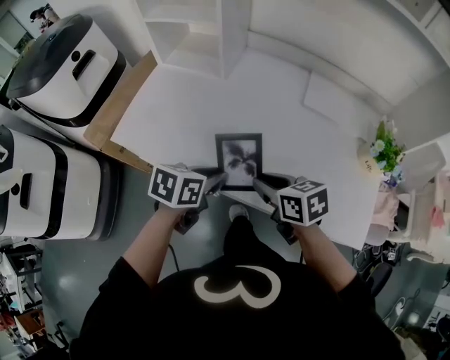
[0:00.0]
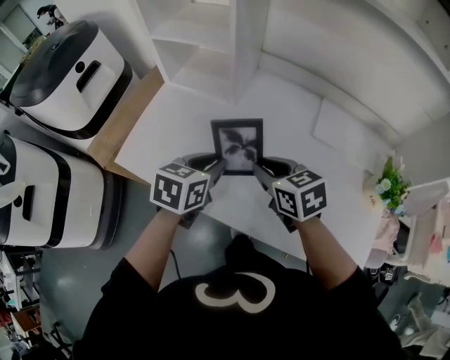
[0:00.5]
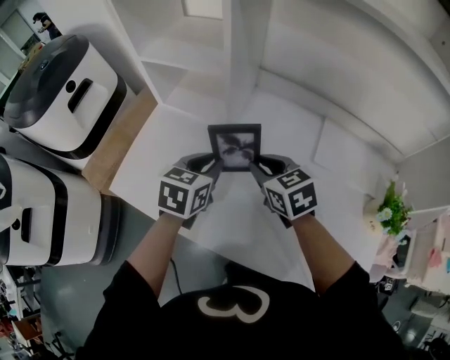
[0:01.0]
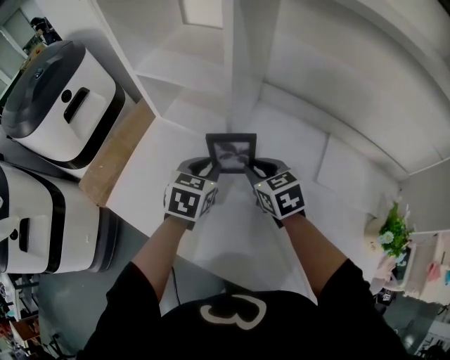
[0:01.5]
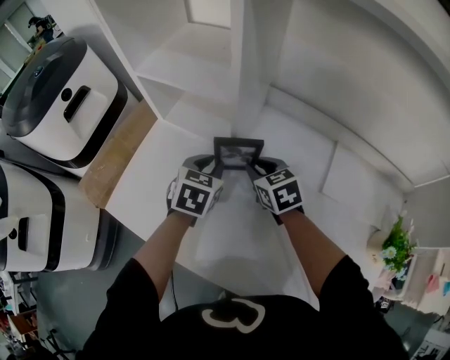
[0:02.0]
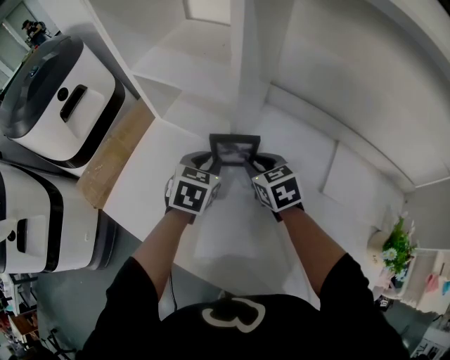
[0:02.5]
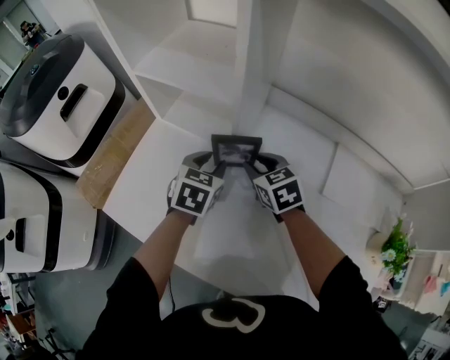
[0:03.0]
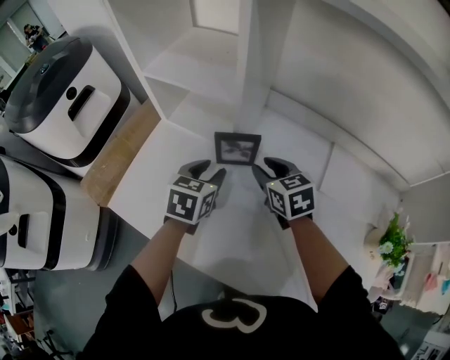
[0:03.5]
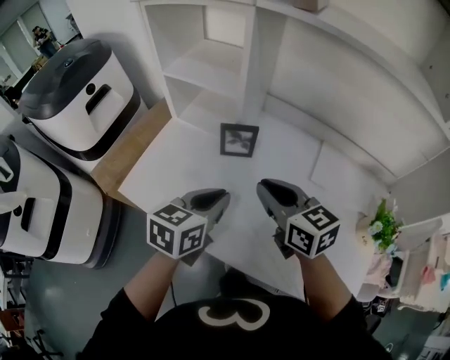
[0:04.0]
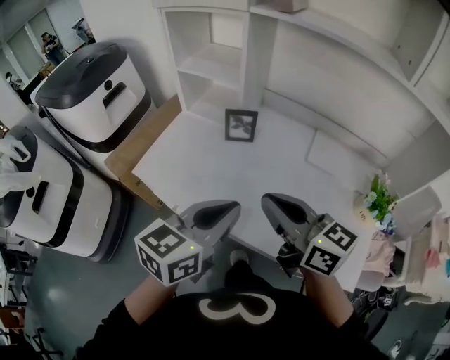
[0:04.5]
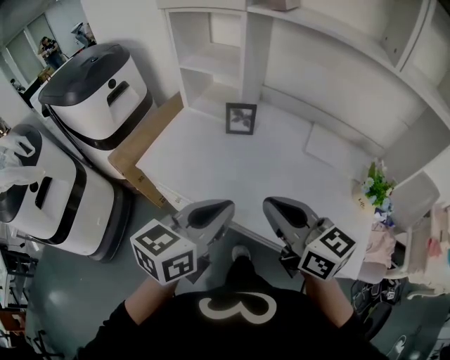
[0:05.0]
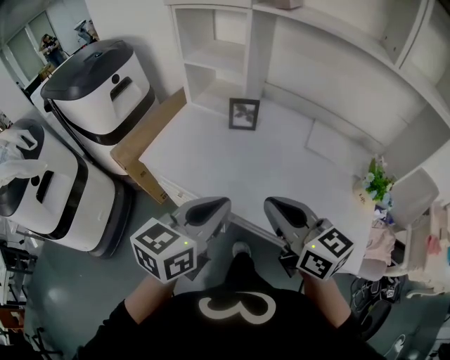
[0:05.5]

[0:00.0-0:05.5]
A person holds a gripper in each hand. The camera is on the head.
0:00.0 to 0:02.0: The two grippers go some 35 cm forward. The right gripper turns by about 20 degrees. The left gripper turns by approximately 30 degrees.
0:02.0 to 0:03.5: There are only small adjustments of the grippers.
0:03.5 to 0:05.5: The two grippers go approximately 40 cm backward and upward. The left gripper rotates approximately 30 degrees, and closes its fingers; the right gripper changes its angle by about 30 degrees, and closes.

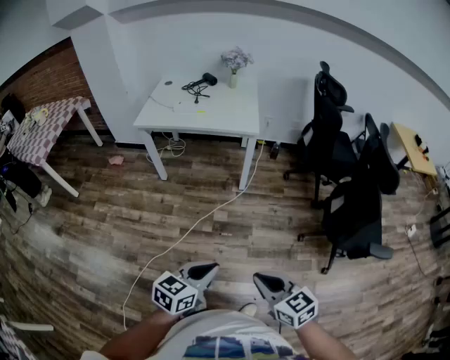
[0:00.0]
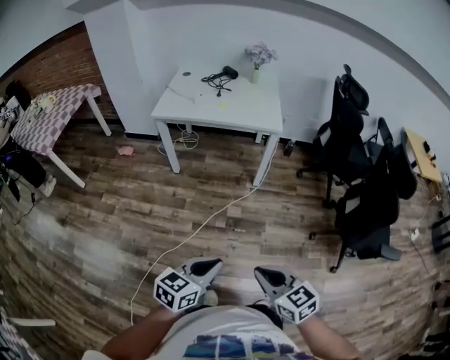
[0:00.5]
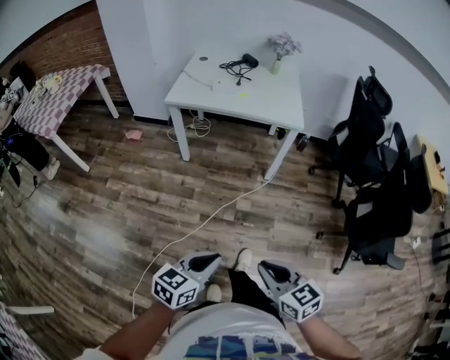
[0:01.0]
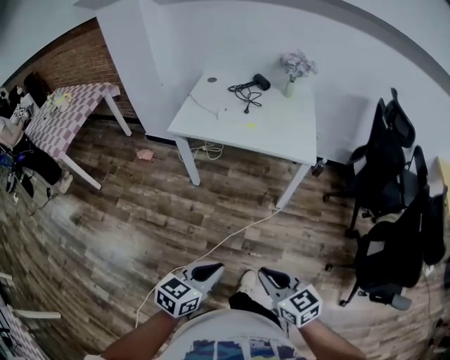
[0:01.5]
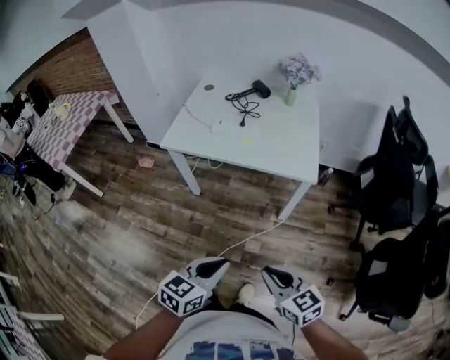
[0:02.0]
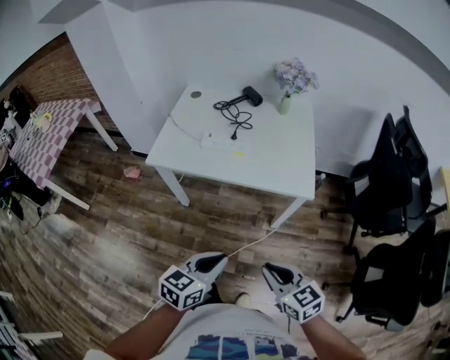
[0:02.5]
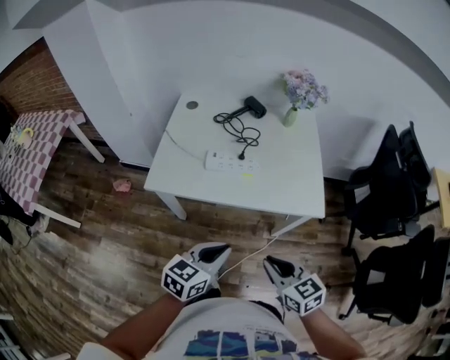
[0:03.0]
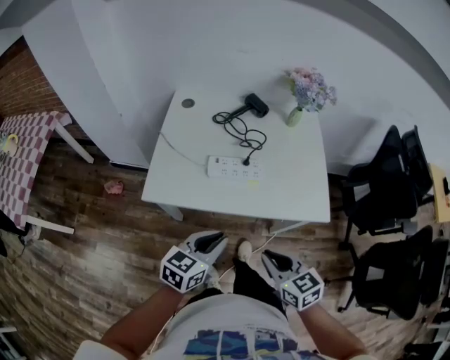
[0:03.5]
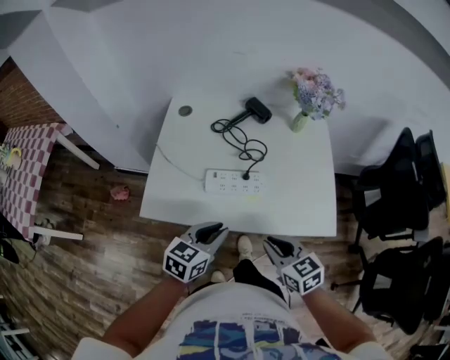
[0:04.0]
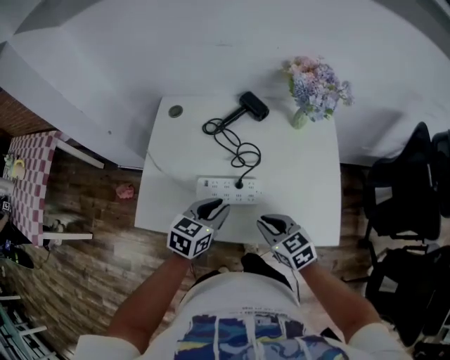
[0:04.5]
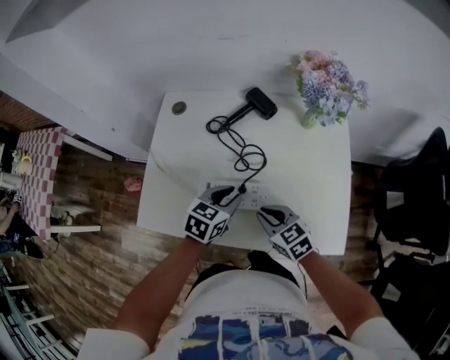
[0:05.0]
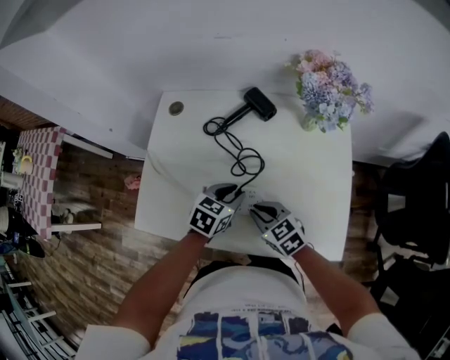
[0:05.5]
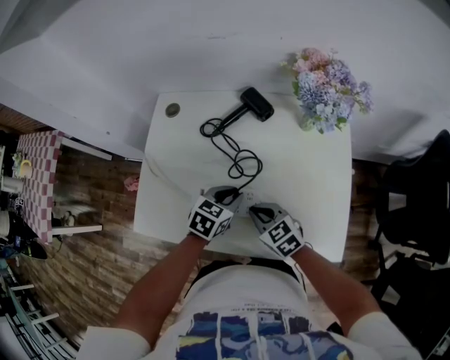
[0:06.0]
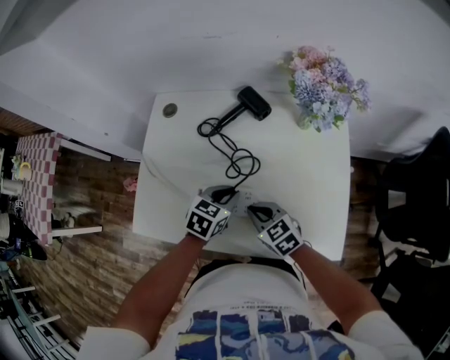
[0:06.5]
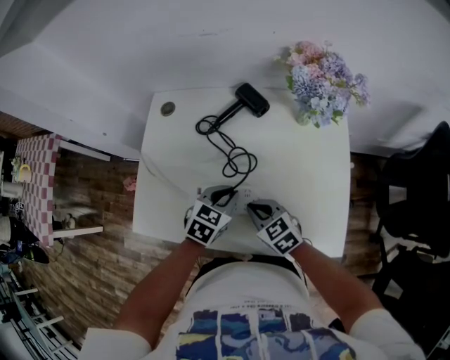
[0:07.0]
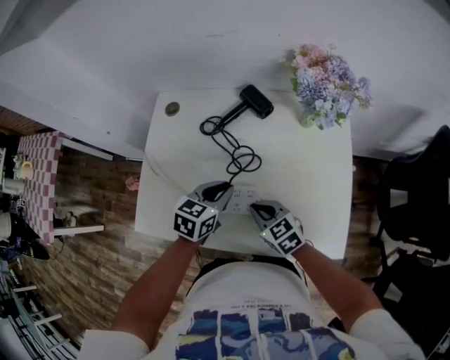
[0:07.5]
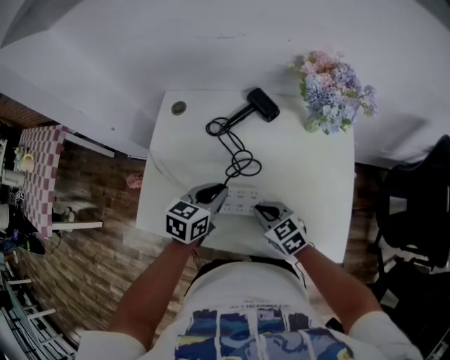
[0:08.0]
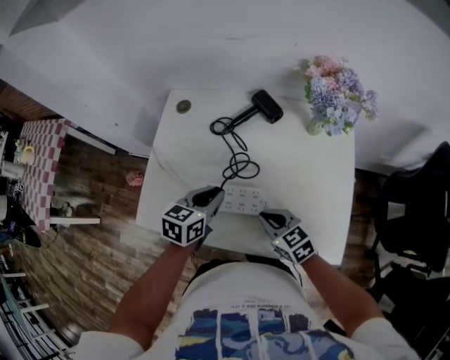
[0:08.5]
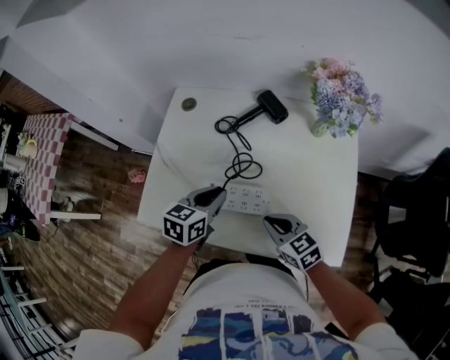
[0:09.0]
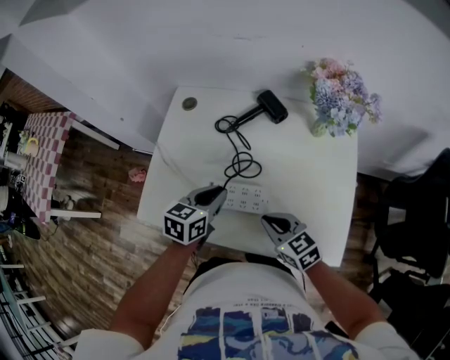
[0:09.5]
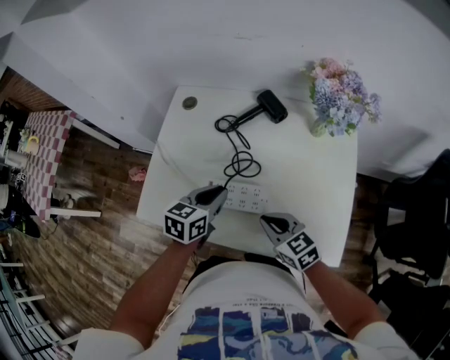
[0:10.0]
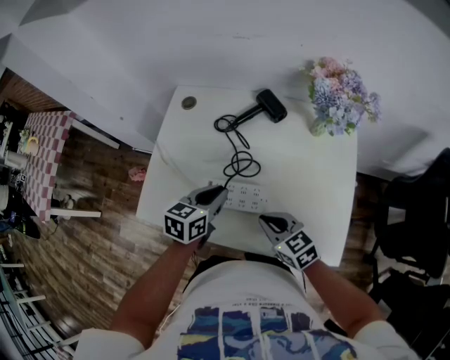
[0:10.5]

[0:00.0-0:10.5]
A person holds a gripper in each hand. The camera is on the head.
0:00.0 to 0:02.0: Both grippers move forward, approximately 35 cm.
0:02.0 to 0:04.0: Both grippers are carried forward, approximately 50 cm.
0:04.0 to 0:06.5: The right gripper shifts about 25 cm forward and downward. The left gripper is displaced forward, downward and to the right by approximately 25 cm.
0:06.5 to 0:08.5: The left gripper shifts some 10 cm to the left and upward.
0:08.5 to 0:10.5: The grippers move only a little.

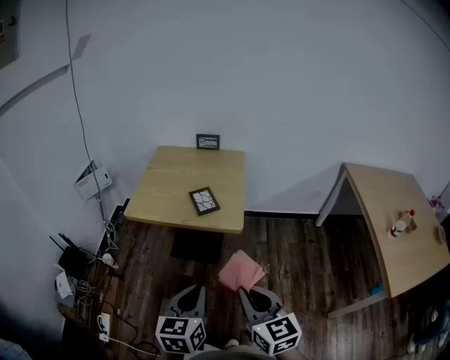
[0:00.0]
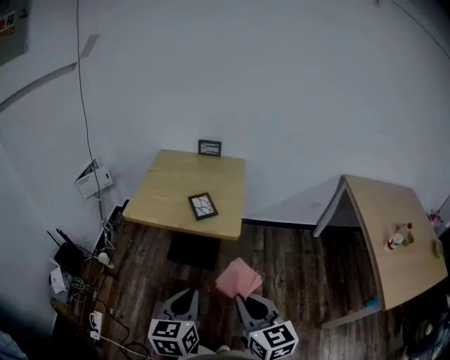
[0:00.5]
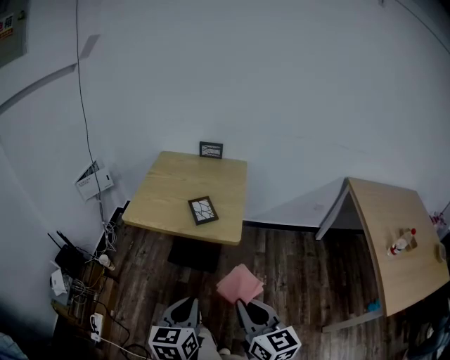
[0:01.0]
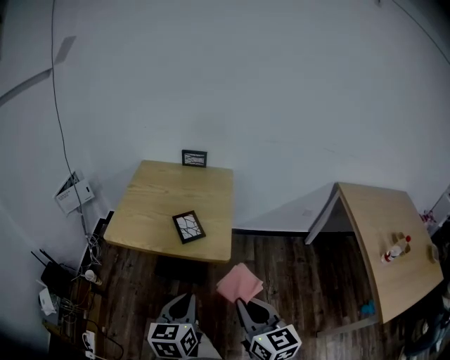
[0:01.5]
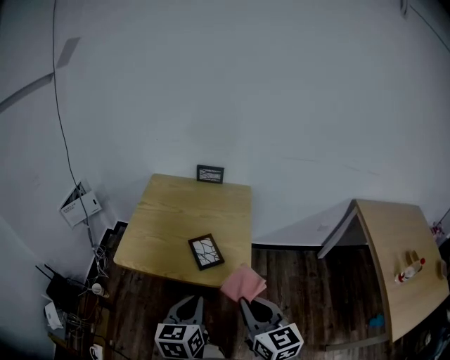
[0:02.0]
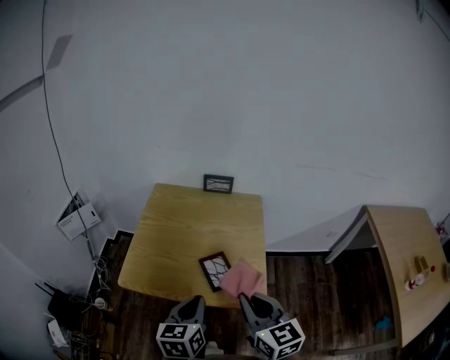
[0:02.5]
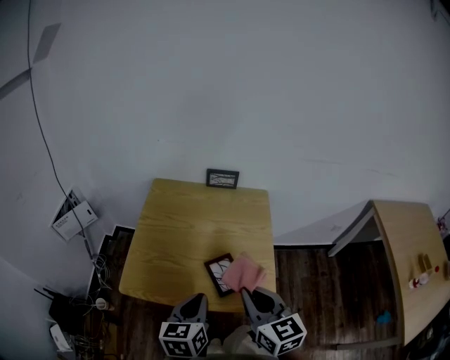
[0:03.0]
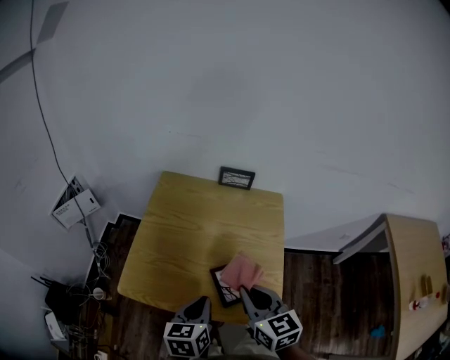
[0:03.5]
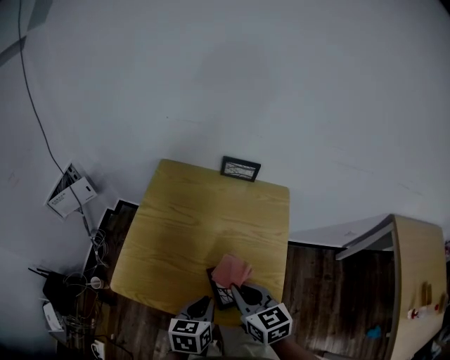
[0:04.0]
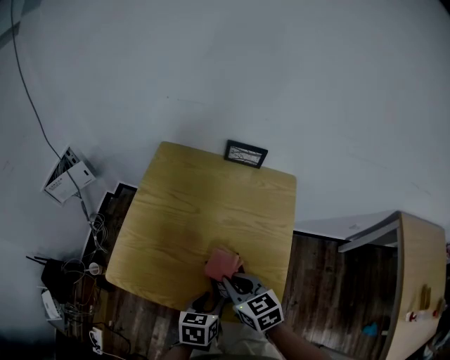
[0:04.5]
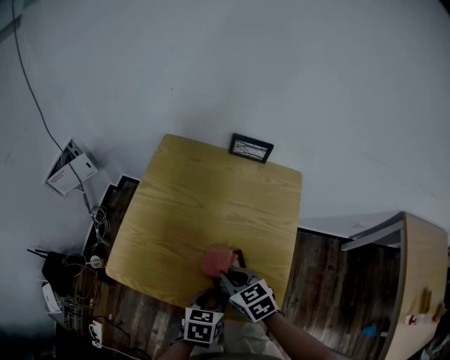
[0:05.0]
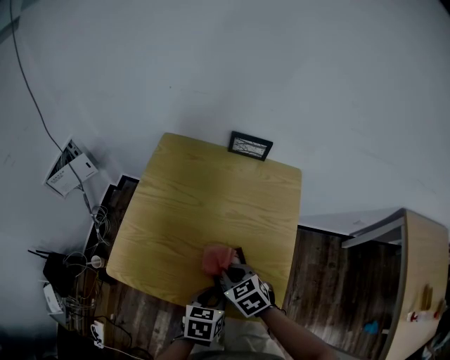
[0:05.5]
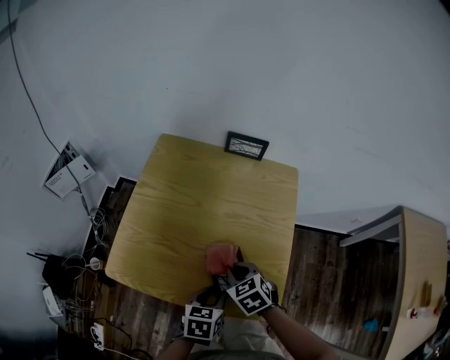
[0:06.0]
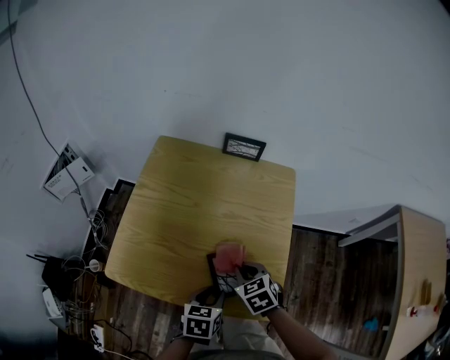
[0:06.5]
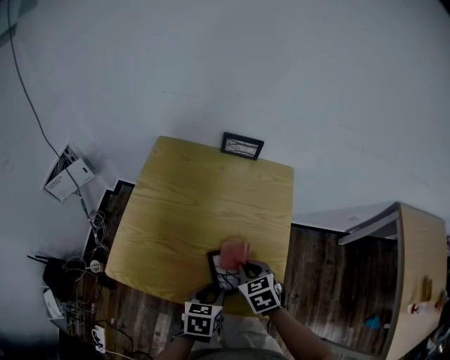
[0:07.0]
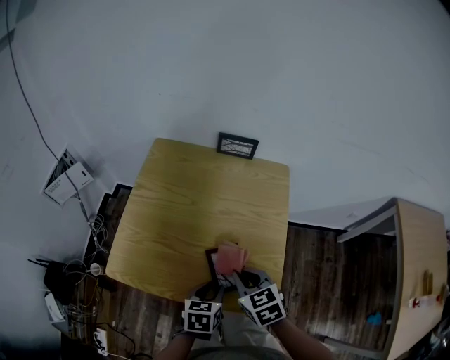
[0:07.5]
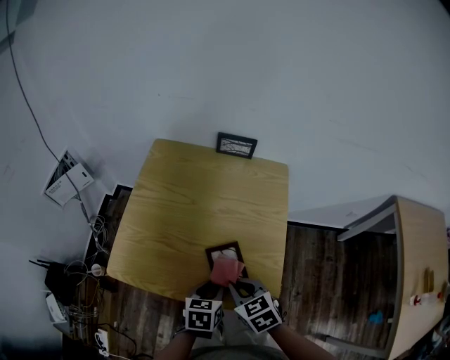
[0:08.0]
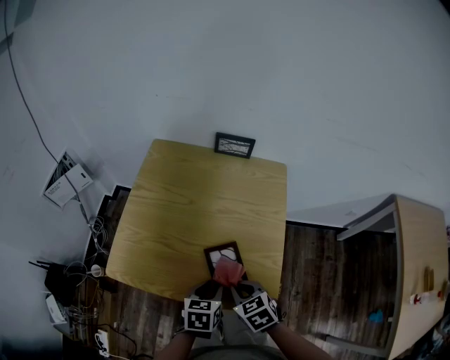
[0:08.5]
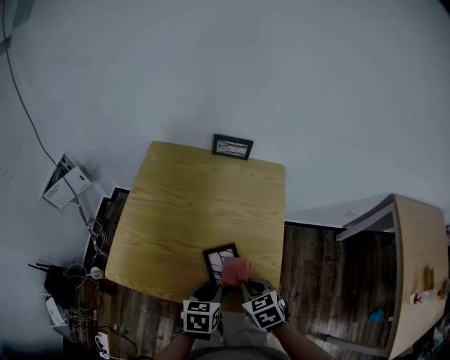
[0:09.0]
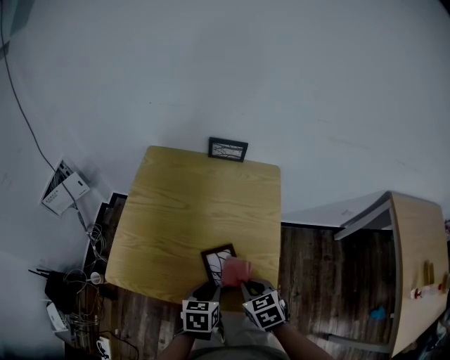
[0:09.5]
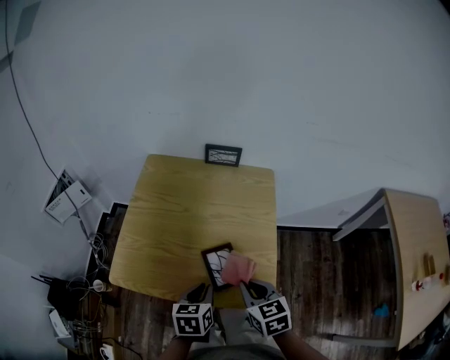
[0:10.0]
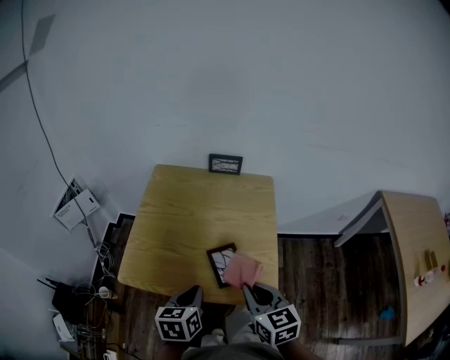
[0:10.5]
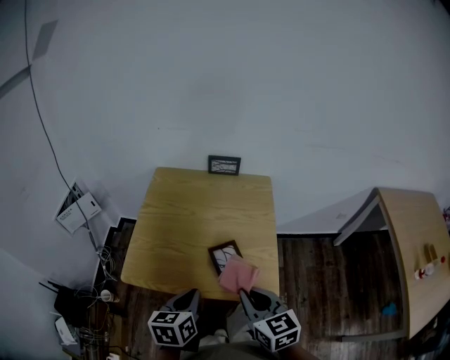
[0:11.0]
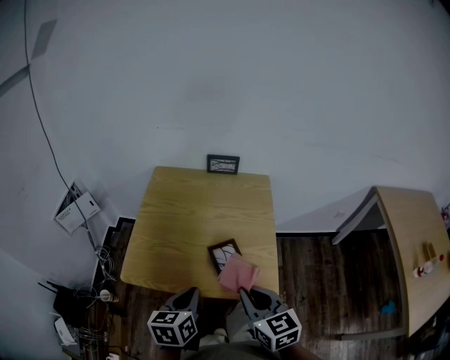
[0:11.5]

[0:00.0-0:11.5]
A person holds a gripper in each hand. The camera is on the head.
0:00.0 to 0:02.0: The two grippers go about 20 cm forward.
0:02.0 to 0:04.0: Both grippers travel together forward and downward, about 25 cm.
0:04.0 to 0:06.0: The right gripper shifts roughly 10 cm downward, and swivels approximately 30 degrees. The left gripper shifts some 5 cm downward, and opens its fingers.
0:06.0 to 0:07.5: The right gripper travels upward by some 5 cm.
0:07.5 to 0:09.5: The right gripper shifts by some 5 cm.
0:09.5 to 0:11.5: The right gripper travels upward and backward by some 20 cm, and turns by about 30 degrees. The left gripper goes some 15 cm upward, to the left and backward, and closes.
